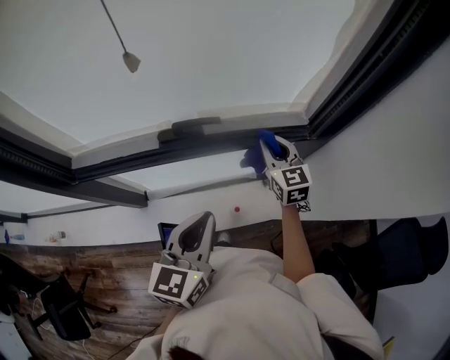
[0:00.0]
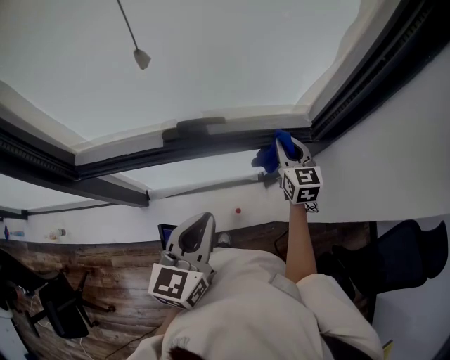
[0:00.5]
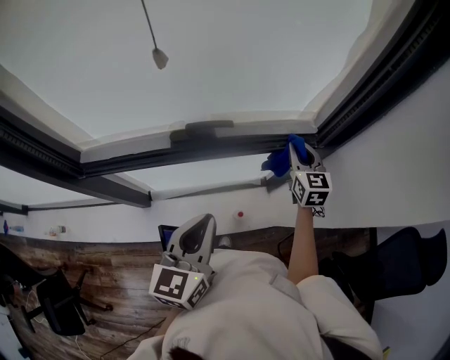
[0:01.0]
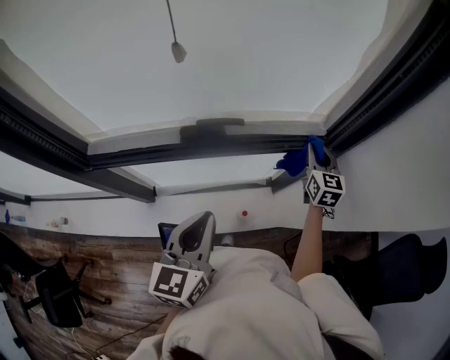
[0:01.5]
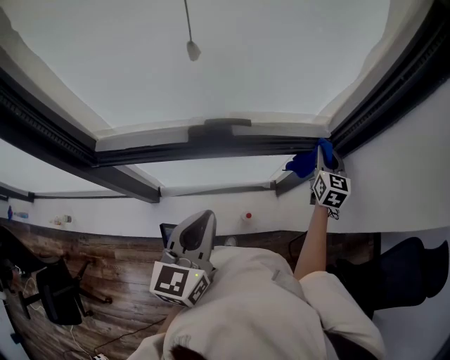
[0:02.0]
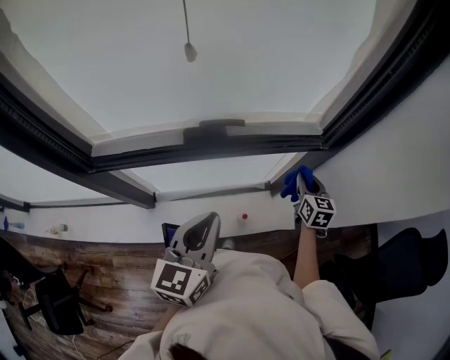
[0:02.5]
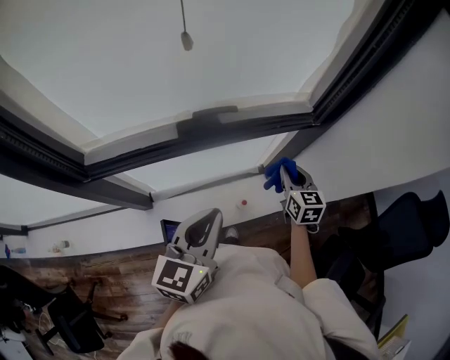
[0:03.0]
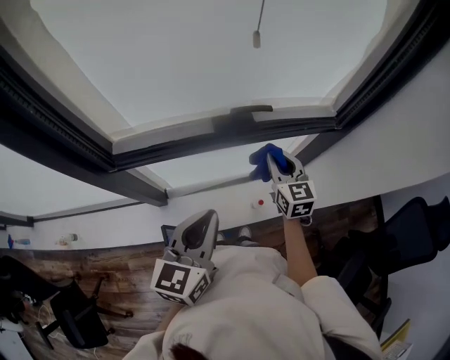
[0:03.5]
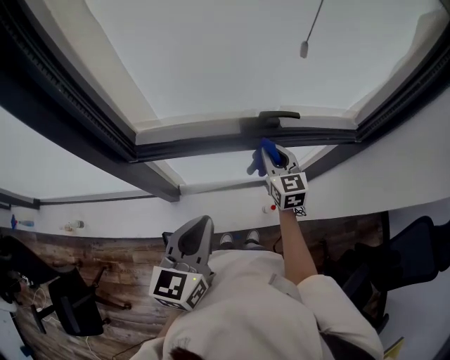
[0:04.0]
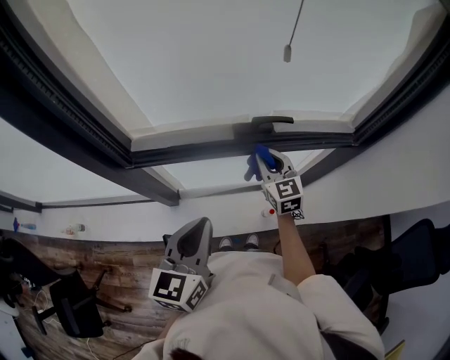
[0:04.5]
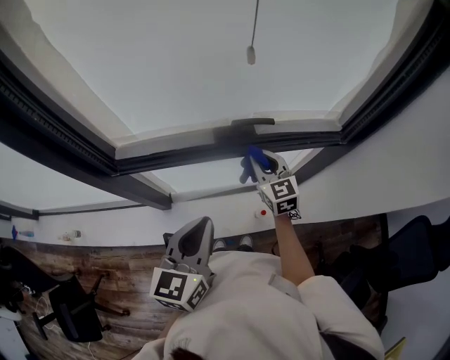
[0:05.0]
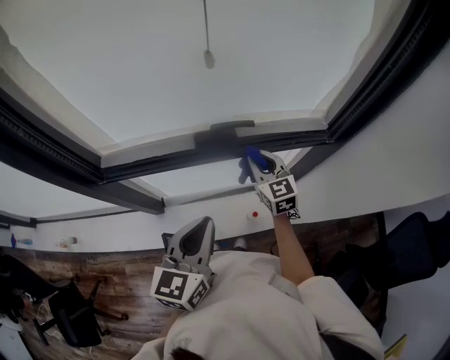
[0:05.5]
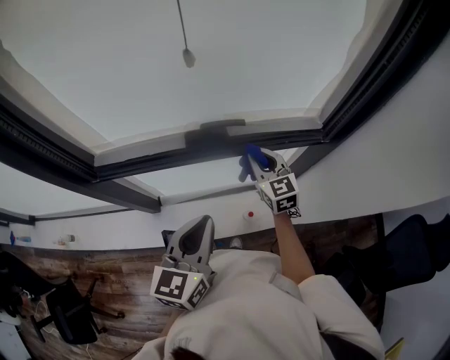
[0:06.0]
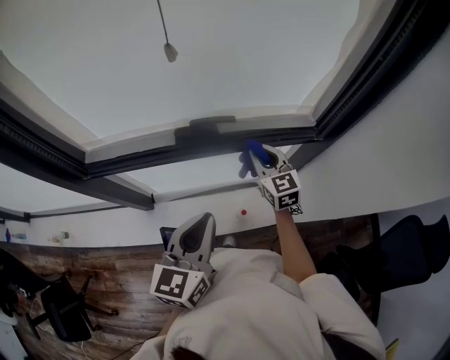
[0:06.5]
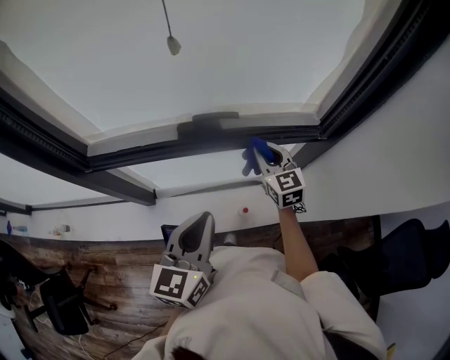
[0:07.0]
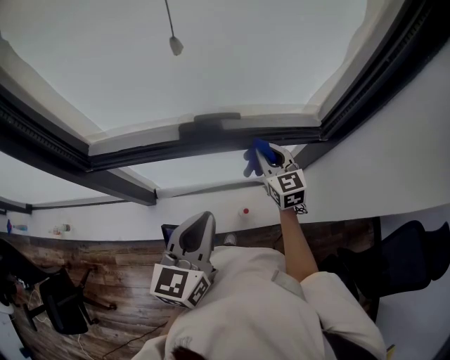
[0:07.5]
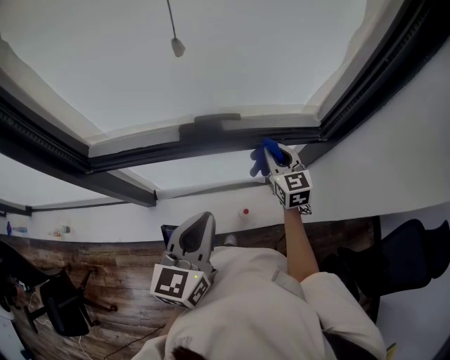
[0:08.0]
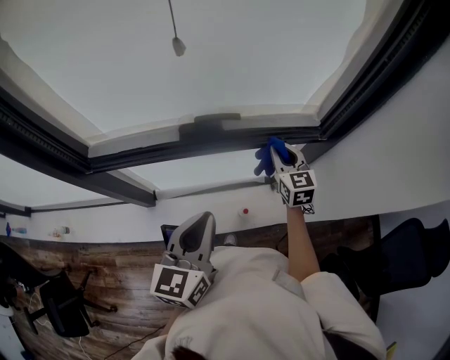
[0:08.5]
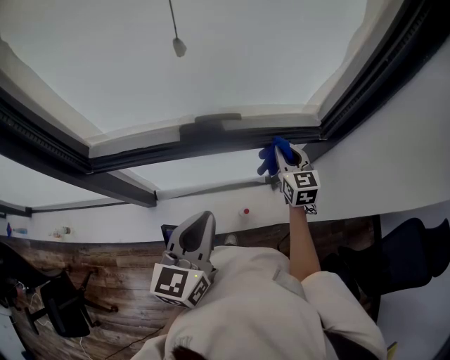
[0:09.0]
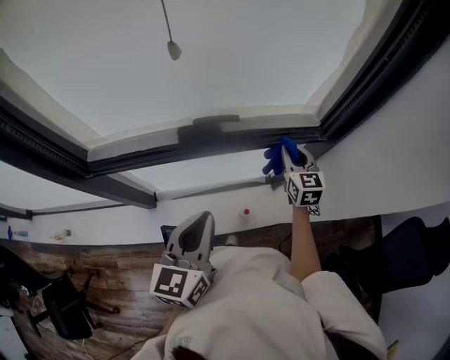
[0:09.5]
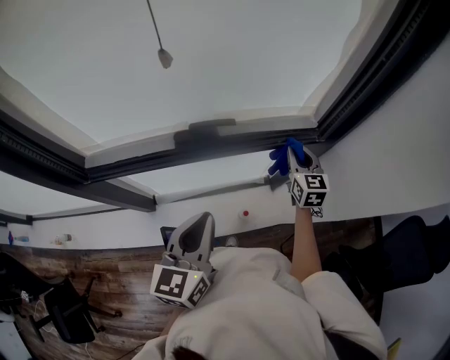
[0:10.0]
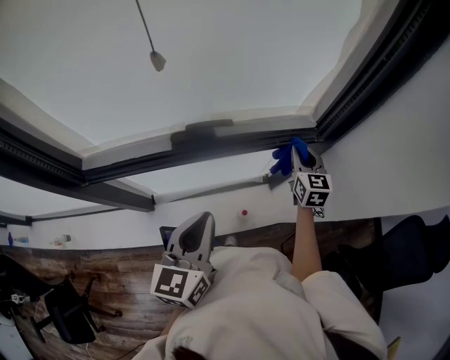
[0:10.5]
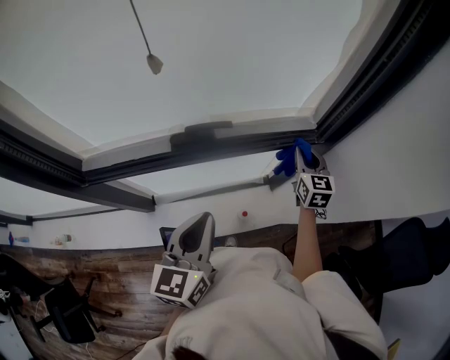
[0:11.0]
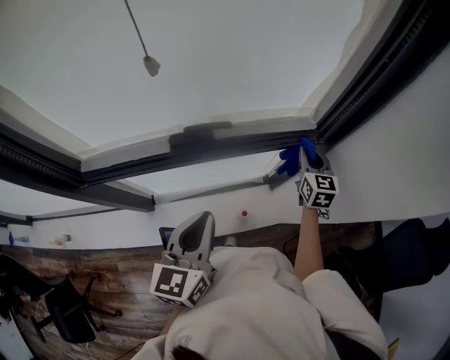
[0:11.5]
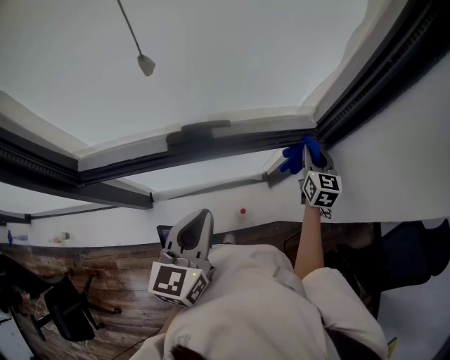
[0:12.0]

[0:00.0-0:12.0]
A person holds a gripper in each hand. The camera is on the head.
0:00.0 to 0:02.0: The right gripper is displaced to the right by about 10 cm; the left gripper ends up some 5 cm from where it was.
0:02.0 to 0:04.0: The right gripper goes approximately 30 cm to the left, and changes its angle by roughly 20 degrees. Meanwhile the left gripper is displaced to the left and backward by approximately 15 cm.
0:04.0 to 0:06.0: The grippers both shift to the right by roughly 15 cm.
0:06.0 to 0:08.0: The right gripper goes some 5 cm to the right.
0:08.0 to 0:10.0: The right gripper travels to the right by roughly 10 cm.
0:10.0 to 0:12.0: The right gripper moves to the right, about 5 cm.

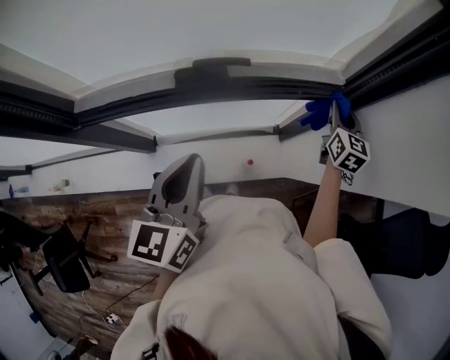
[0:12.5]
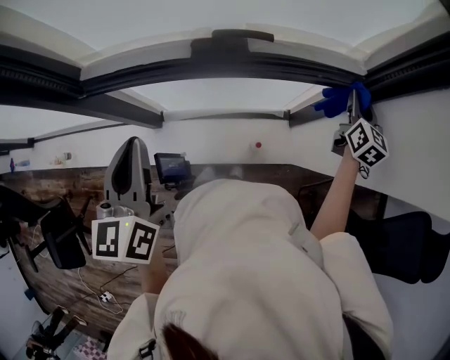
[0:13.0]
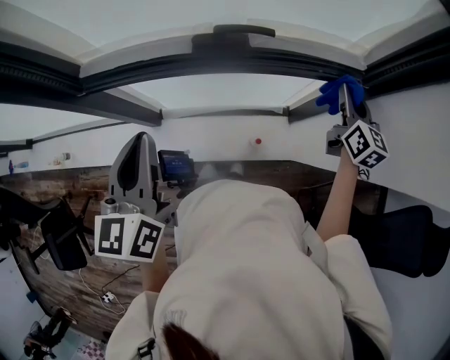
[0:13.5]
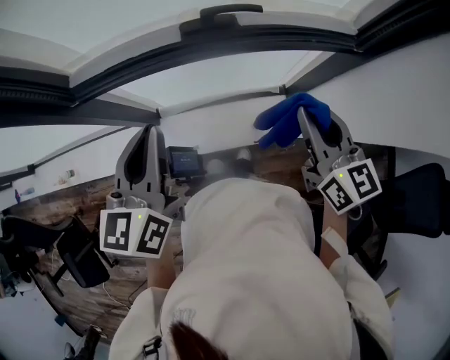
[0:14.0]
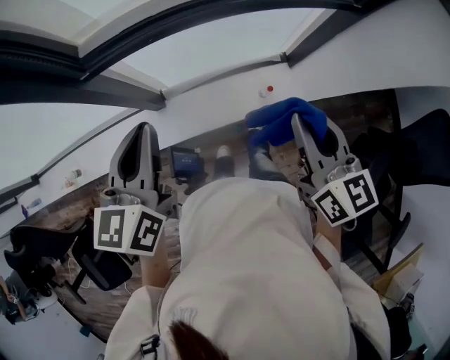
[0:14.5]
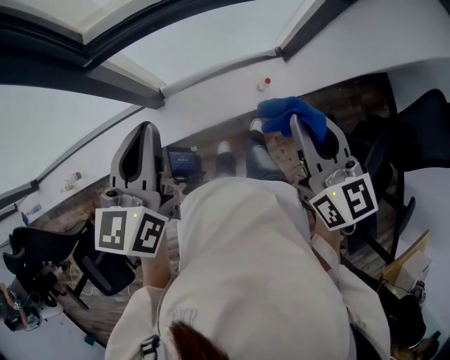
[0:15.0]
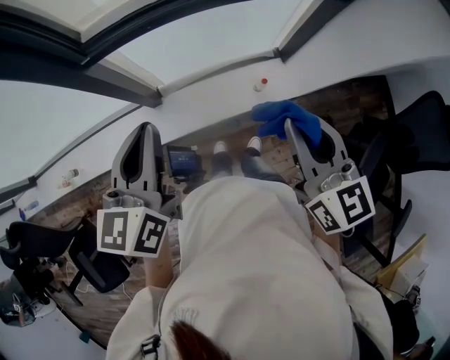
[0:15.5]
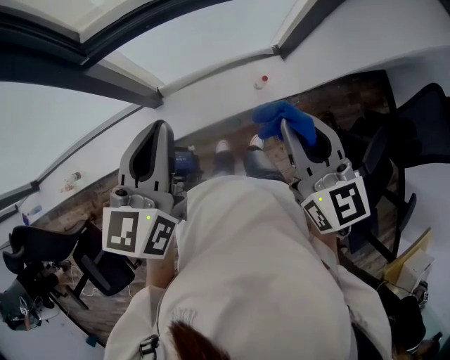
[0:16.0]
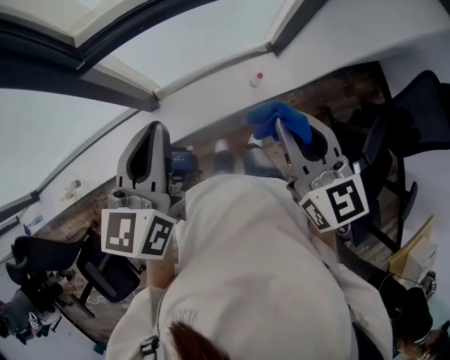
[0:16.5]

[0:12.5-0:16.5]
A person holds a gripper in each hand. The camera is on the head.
0:12.5 to 0:14.5: The left gripper is displaced to the left and backward by roughly 25 cm, while the right gripper travels backward and to the left by about 50 cm, and turns by about 20 degrees.
0:14.5 to 0:16.5: The right gripper shifts about 10 cm backward and to the left. The left gripper is displaced backward by about 5 cm.

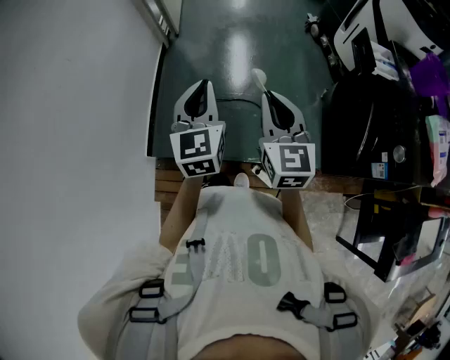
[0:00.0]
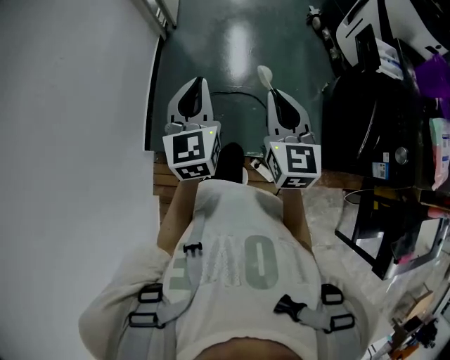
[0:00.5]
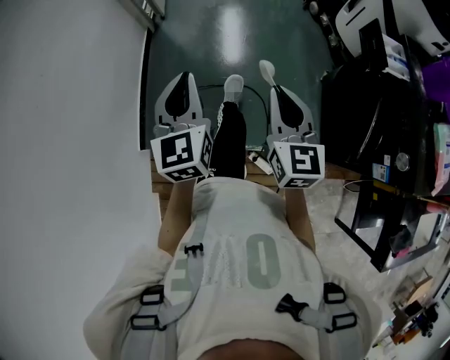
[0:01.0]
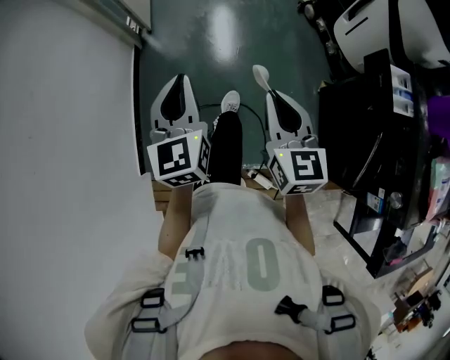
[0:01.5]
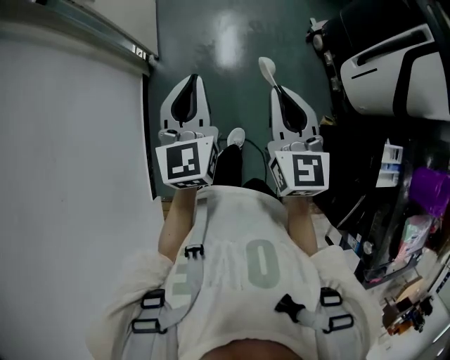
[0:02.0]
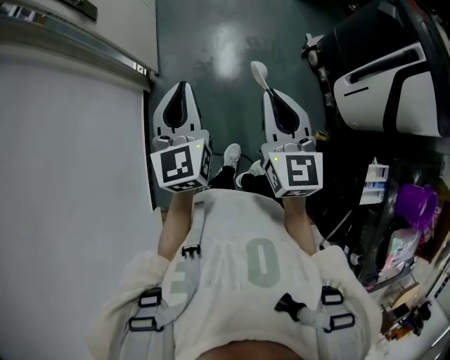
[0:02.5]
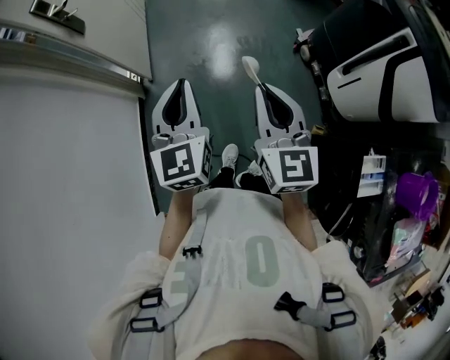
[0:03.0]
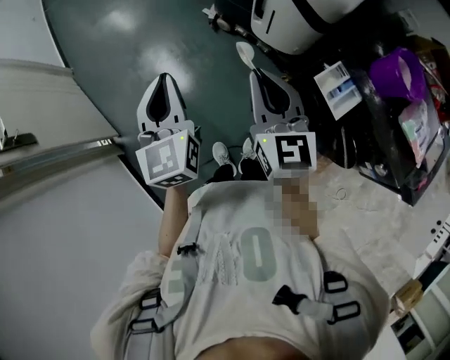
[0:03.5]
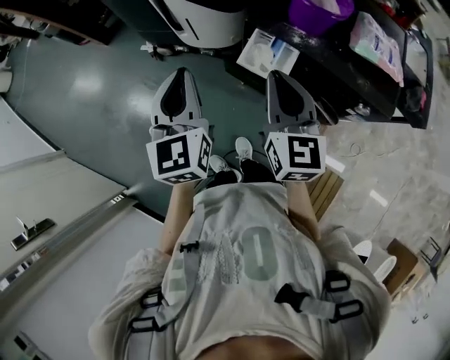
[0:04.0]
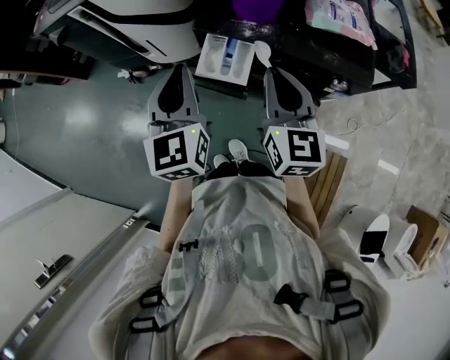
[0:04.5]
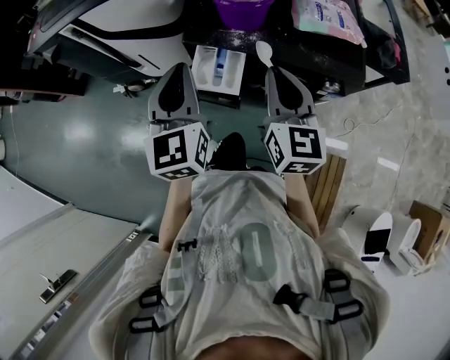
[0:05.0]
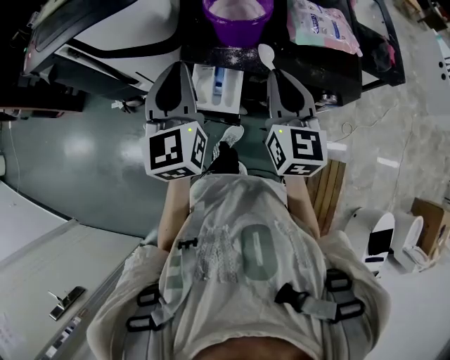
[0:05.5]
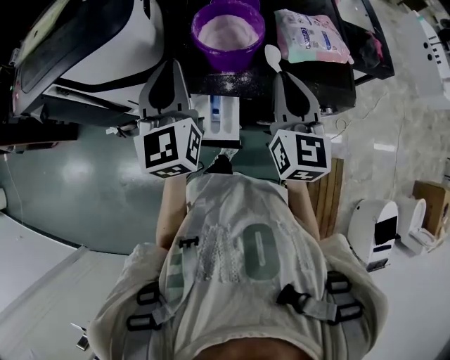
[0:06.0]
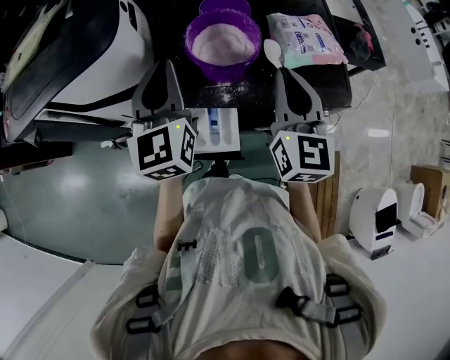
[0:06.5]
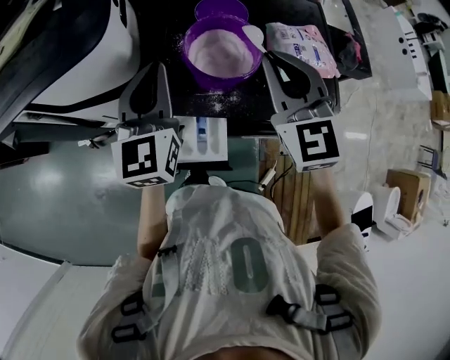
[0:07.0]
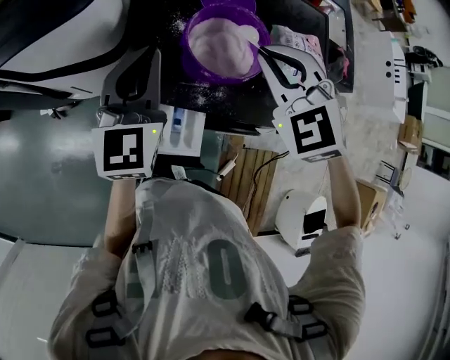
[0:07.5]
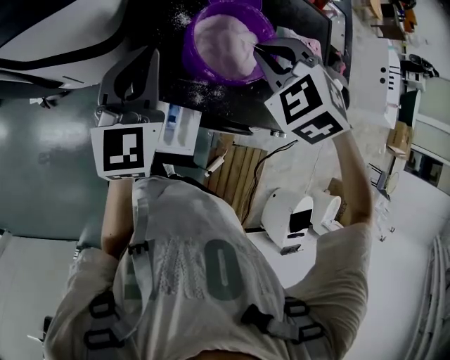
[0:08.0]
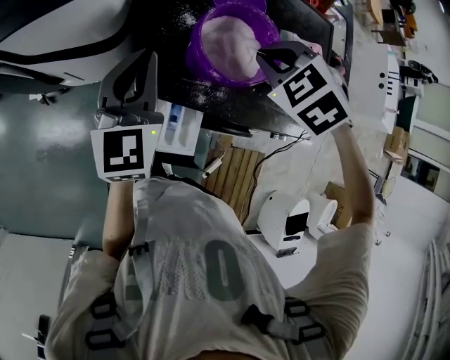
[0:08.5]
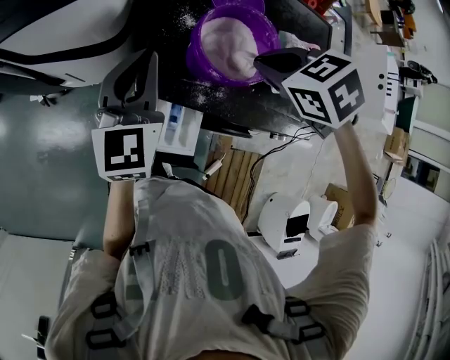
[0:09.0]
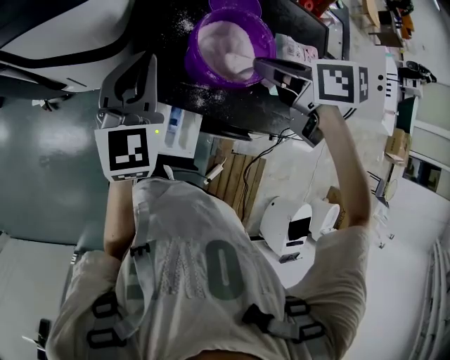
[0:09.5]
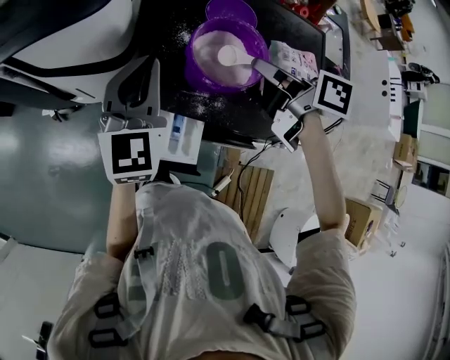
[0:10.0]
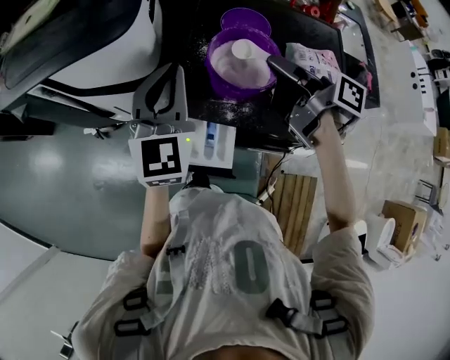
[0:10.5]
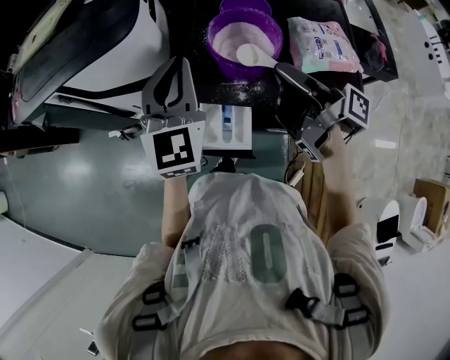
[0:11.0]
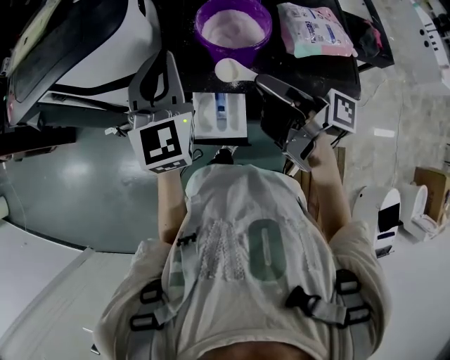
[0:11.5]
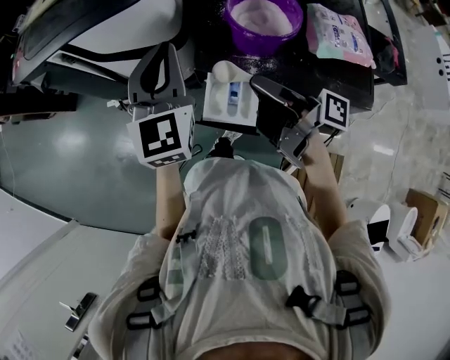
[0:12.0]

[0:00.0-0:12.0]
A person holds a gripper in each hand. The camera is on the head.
0:00.0 to 0:02.0: The pair of grippers is taken forward, roughly 50 cm.
0:02.0 to 0:04.0: The two grippers travel together, some 40 cm. The left gripper rotates approximately 60 degrees, while the right gripper turns by some 60 degrees.
0:04.0 to 0:06.0: The left gripper changes place by some 30 cm, and swivels approximately 30 degrees. The right gripper ends up roughly 20 cm from where it was, and swivels some 30 degrees.
0:06.0 to 0:08.0: The left gripper shifts about 10 cm forward and downward. Meanwhile the right gripper goes about 15 cm forward and to the left, and angles its fingers downward, by about 50 degrees.
0:08.0 to 0:10.0: The right gripper rolls clockwise, seen from behind, by about 90 degrees.
0:10.0 to 0:12.0: The left gripper shifts some 10 cm backward and to the left; the right gripper is displaced backward and to the left by roughly 15 cm, and tilts its fingers approximately 30 degrees upward.
